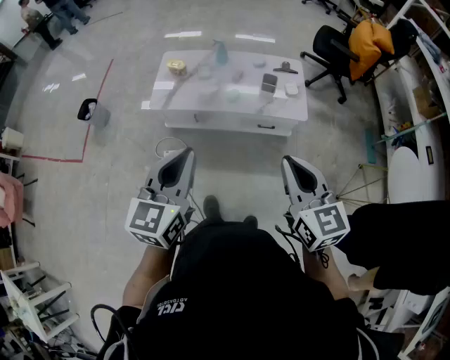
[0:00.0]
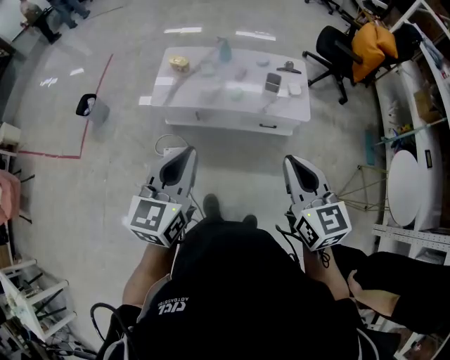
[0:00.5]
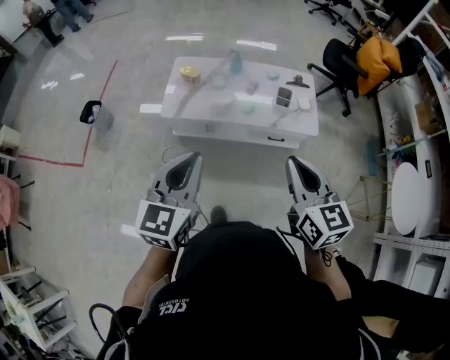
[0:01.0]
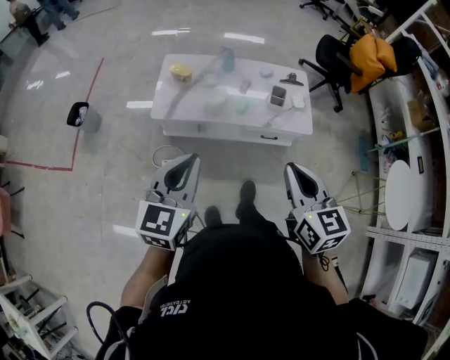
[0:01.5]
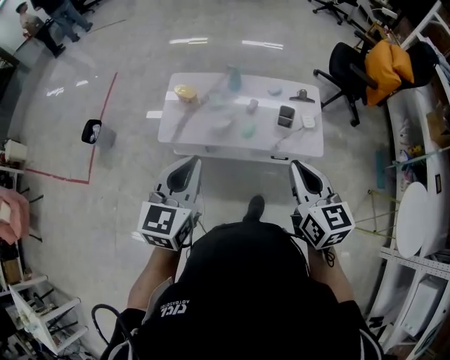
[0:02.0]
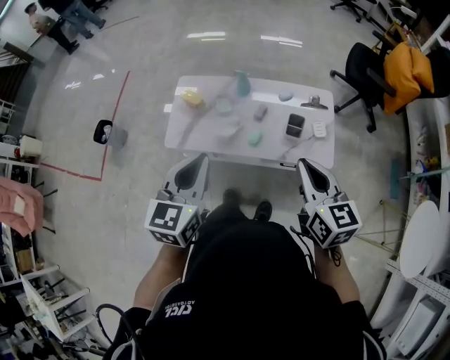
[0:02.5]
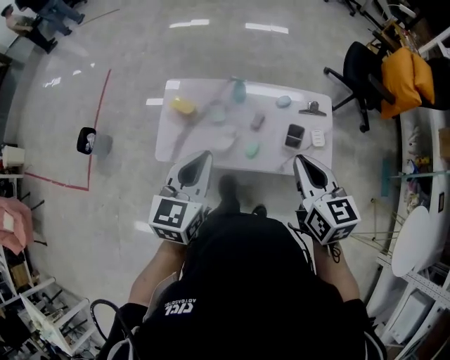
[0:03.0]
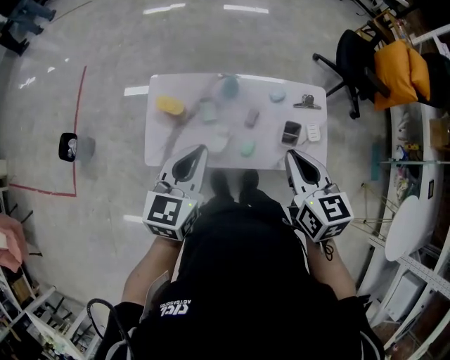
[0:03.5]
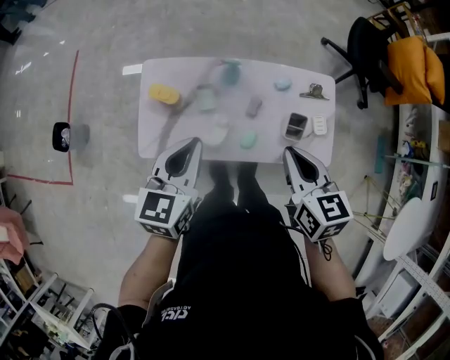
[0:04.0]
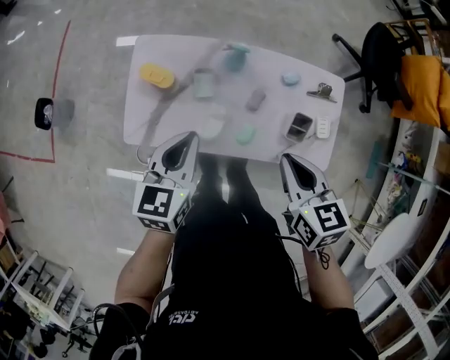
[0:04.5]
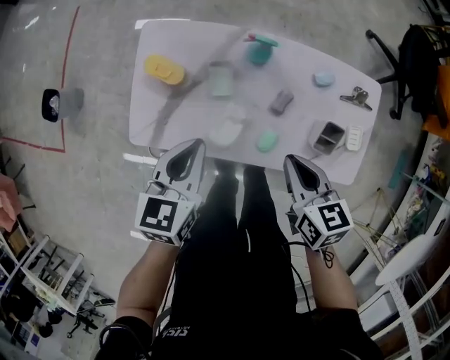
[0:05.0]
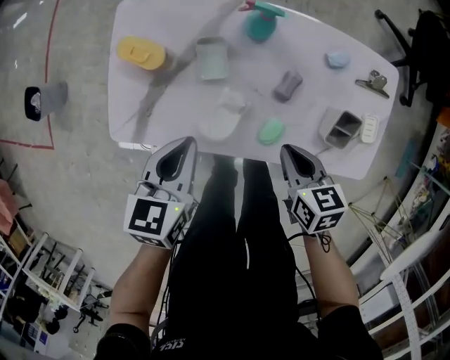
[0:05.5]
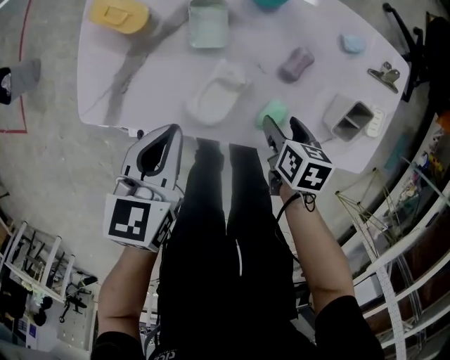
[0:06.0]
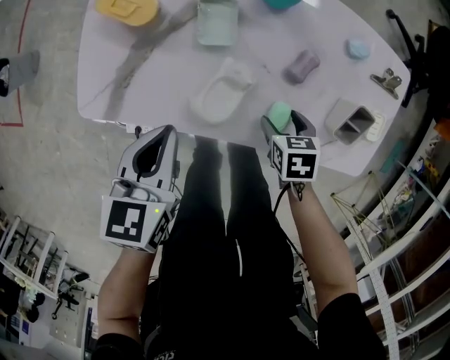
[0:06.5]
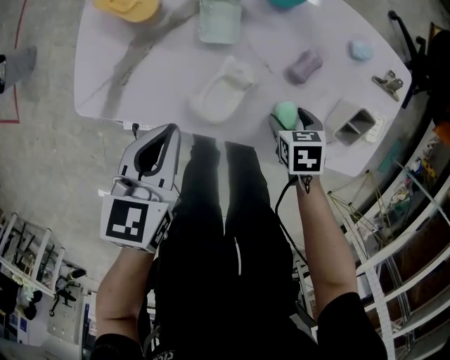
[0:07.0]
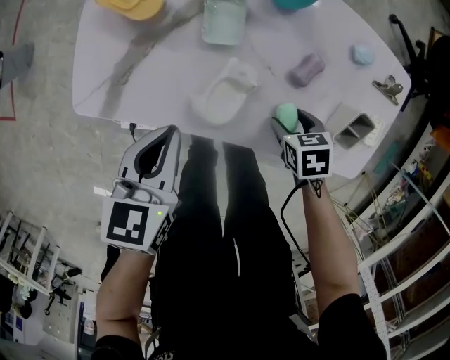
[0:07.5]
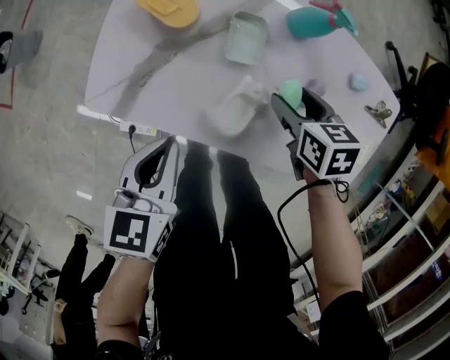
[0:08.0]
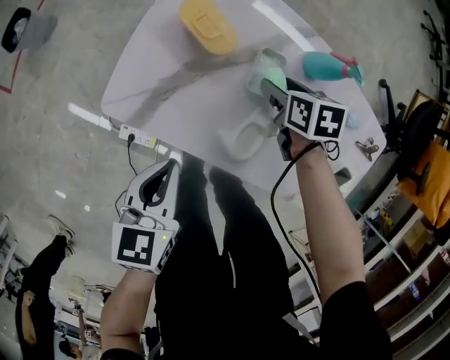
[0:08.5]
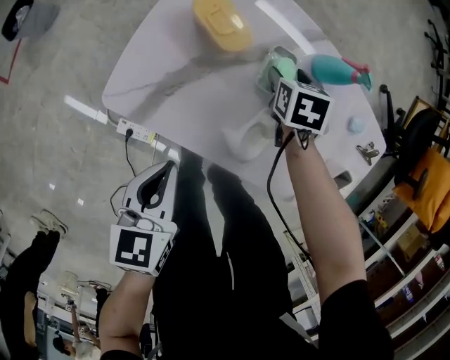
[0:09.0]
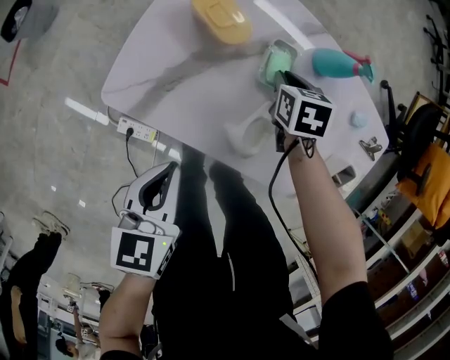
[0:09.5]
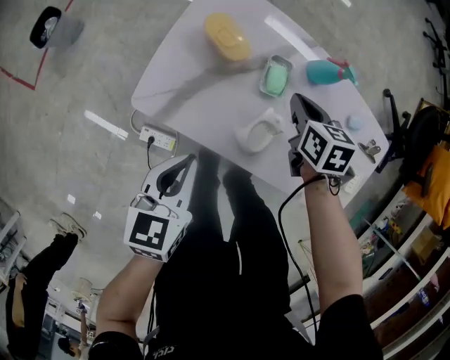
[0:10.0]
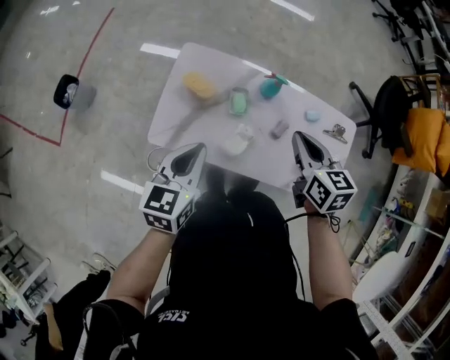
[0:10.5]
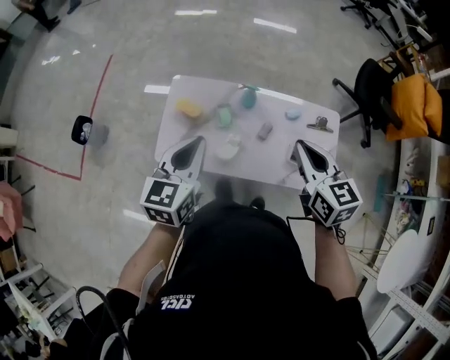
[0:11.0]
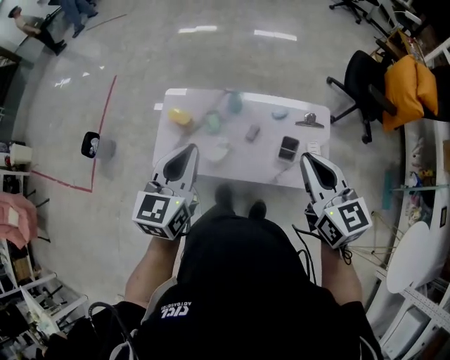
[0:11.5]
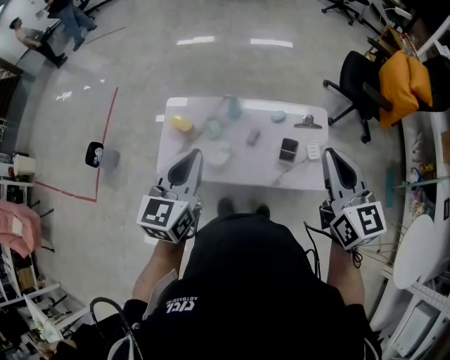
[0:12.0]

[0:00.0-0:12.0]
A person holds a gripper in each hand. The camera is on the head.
0:00.0 to 0:02.0: The two grippers go roughly 20 cm forward.
0:02.0 to 0:04.0: The right gripper shifts about 30 cm forward. The left gripper heads forward and downward, covering roughly 35 cm.
0:04.0 to 0:06.0: Both grippers travel together downward, roughly 40 cm. The left gripper changes its angle by some 20 degrees. Meanwhile the right gripper tips its fingers downward by about 30 degrees, and opens its fingers.
0:06.0 to 0:08.0: The right gripper ends up about 15 cm from where it was, and turns by about 30 degrees. The left gripper ends up some 5 cm from where it was.
0:08.0 to 0:10.0: The left gripper heads upward, covering about 5 cm. Meanwhile the right gripper goes some 10 cm to the left, forward and upward, and closes.
0:10.0 to 0:12.0: The right gripper goes some 60 cm upward, to the right and backward, and points its fingers some 40 degrees further upward, while the left gripper is displaced upward and to the right by about 40 cm, and turns by about 30 degrees.

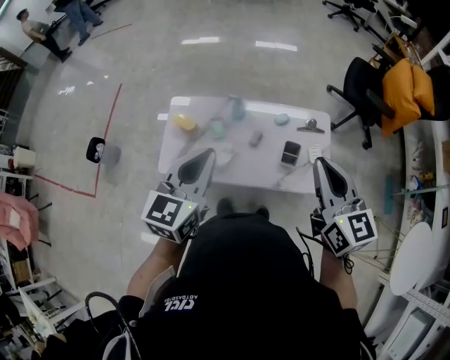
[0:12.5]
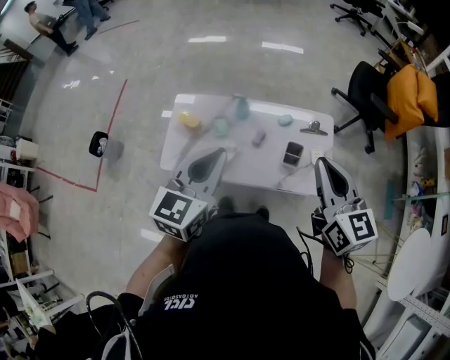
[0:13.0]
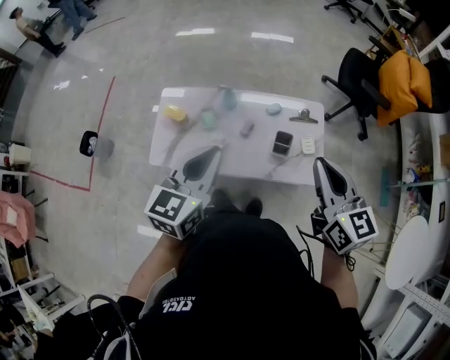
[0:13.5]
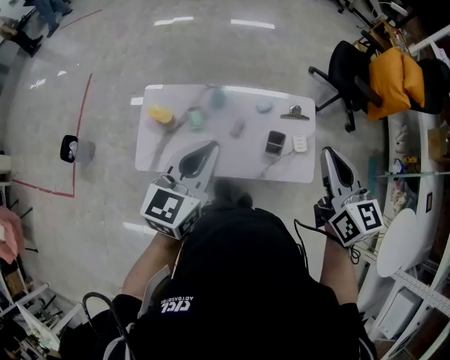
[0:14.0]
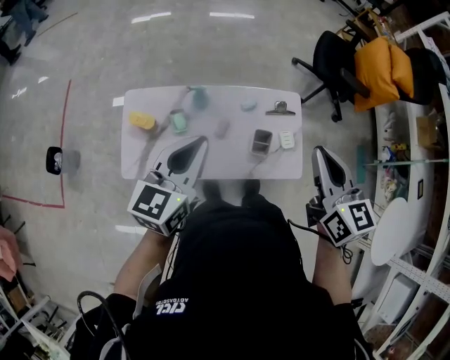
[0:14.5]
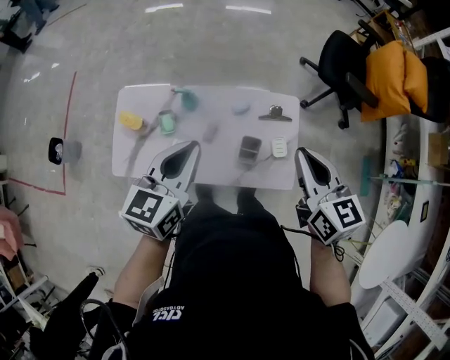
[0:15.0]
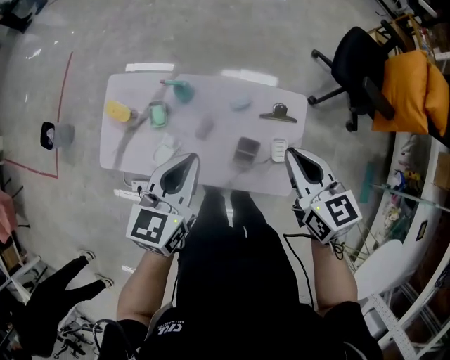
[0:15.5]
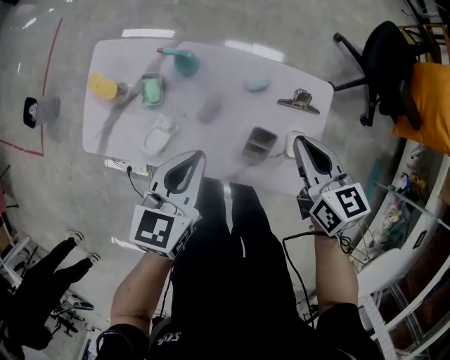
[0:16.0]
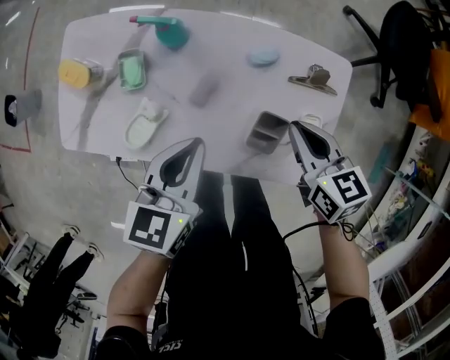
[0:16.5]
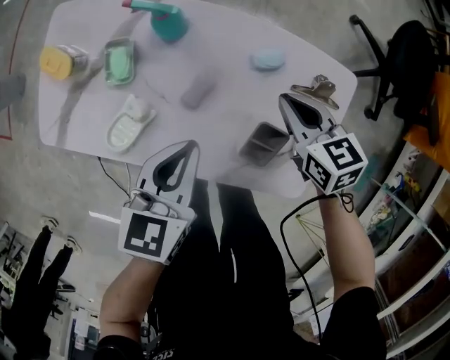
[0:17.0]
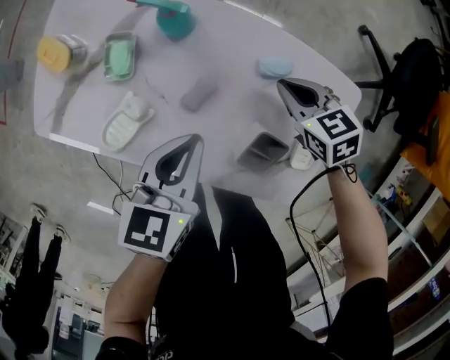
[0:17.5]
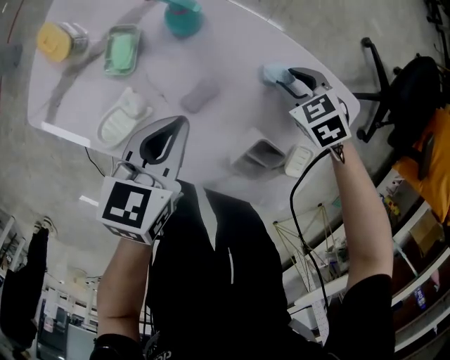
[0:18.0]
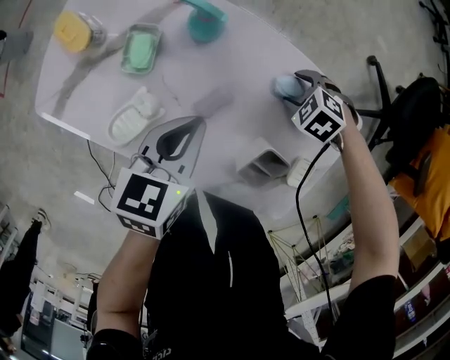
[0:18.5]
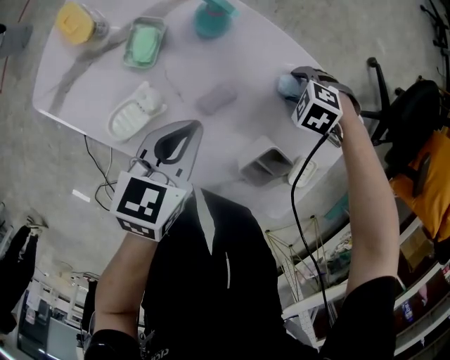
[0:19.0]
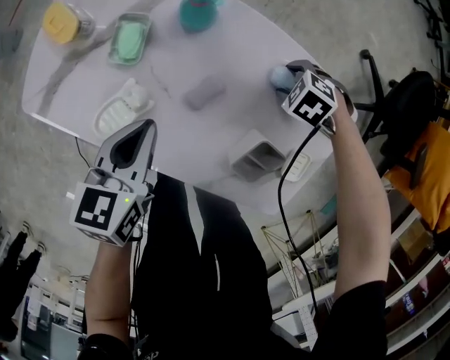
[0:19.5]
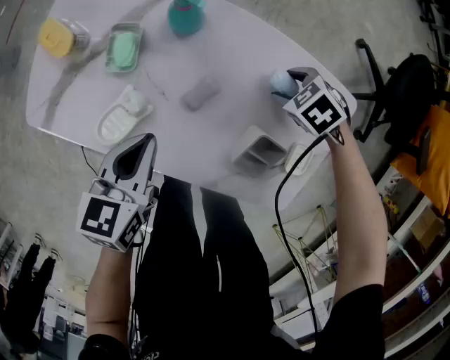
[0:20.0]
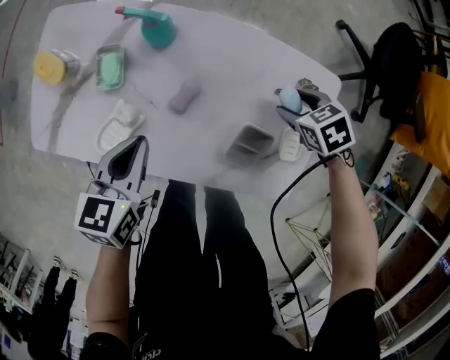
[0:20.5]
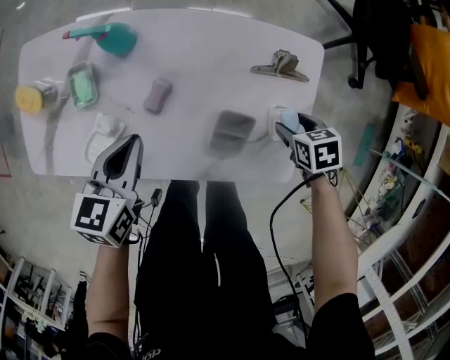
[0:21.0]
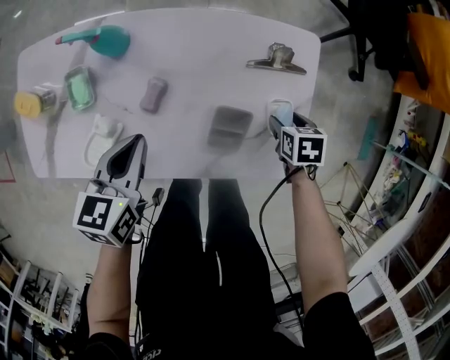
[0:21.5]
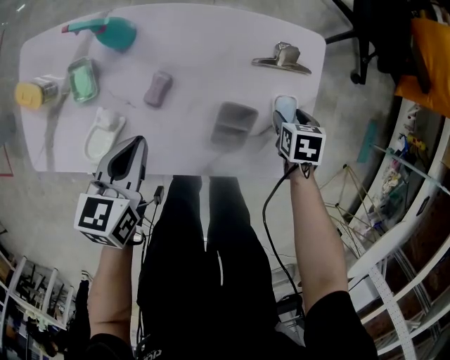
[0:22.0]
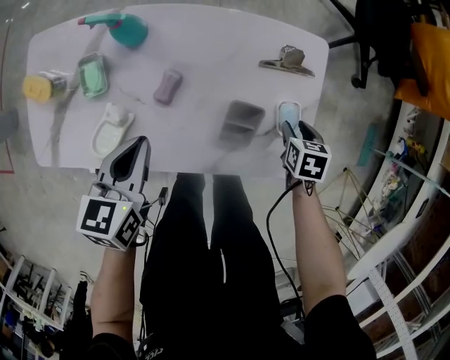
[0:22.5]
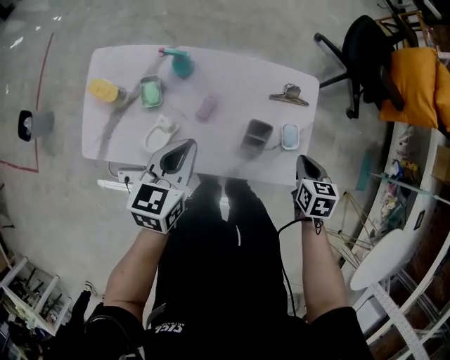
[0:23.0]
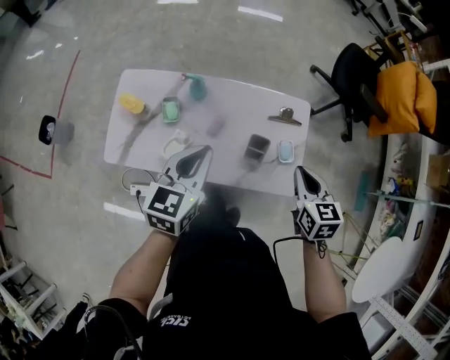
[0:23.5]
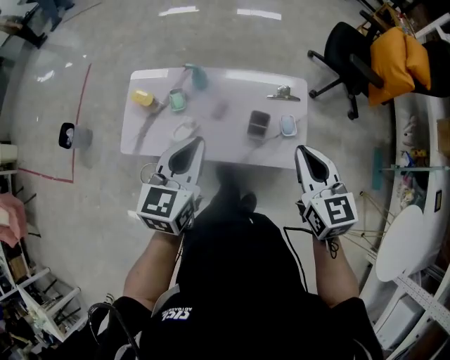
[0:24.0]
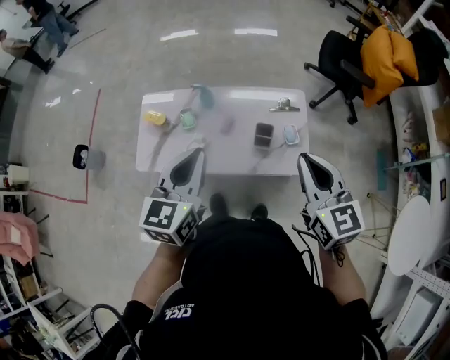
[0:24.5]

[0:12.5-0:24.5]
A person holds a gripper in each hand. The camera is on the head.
0:12.5 to 0:14.5: The grippers both shift forward by roughly 10 cm.
0:14.5 to 0:16.5: The two grippers go roughly 35 cm downward. The left gripper rotates some 30 degrees; the right gripper changes its angle by roughly 30 degrees.
0:16.5 to 0:18.5: The left gripper shifts roughly 10 cm downward, while the right gripper goes approximately 20 cm downward, rolls counterclockwise, seen from behind, by approximately 70 degrees, and opens up.
0:18.5 to 0:20.5: The right gripper moves roughly 15 cm, and rolls clockwise, seen from behind, by some 50 degrees. The left gripper moves approximately 5 cm.
0:20.5 to 0:22.5: The right gripper ends up approximately 15 cm from where it was, and twists some 40 degrees clockwise, seen from behind.
0:22.5 to 0:24.5: Both grippers move upward, about 50 cm. The left gripper turns by some 30 degrees. Meanwhile the right gripper tilts its fingers about 50 degrees upward, and closes up.

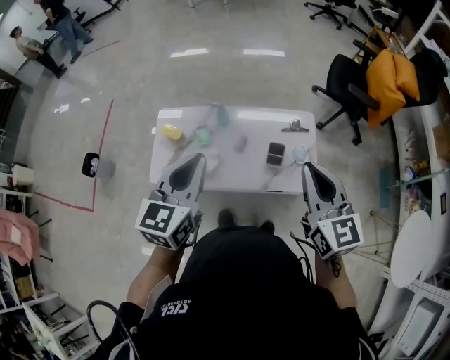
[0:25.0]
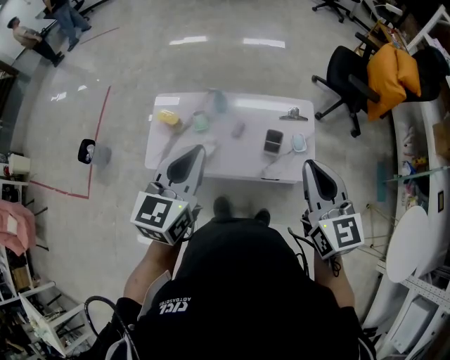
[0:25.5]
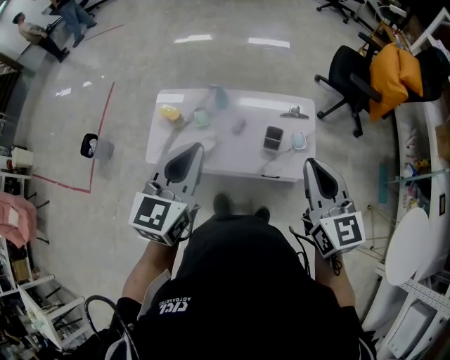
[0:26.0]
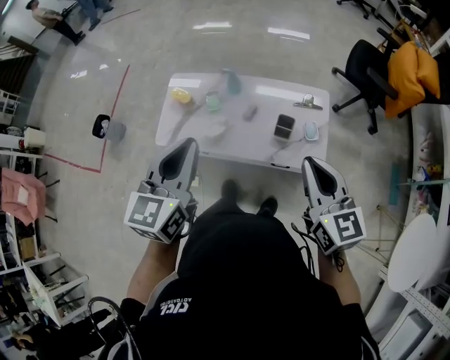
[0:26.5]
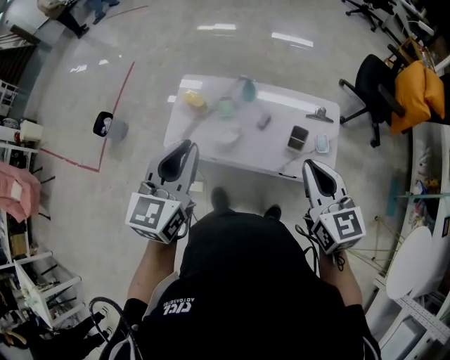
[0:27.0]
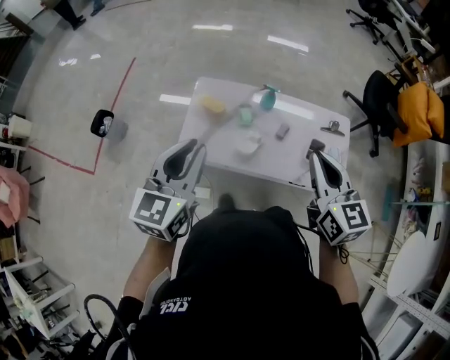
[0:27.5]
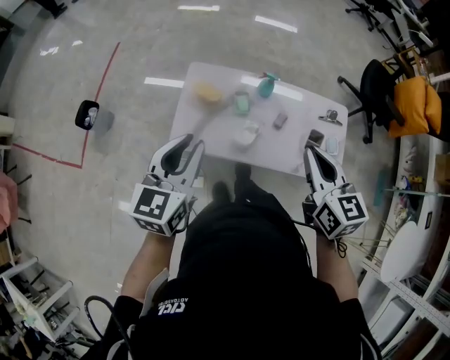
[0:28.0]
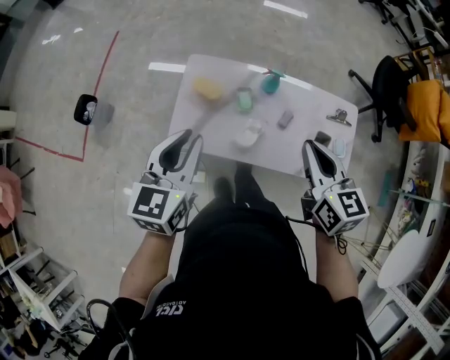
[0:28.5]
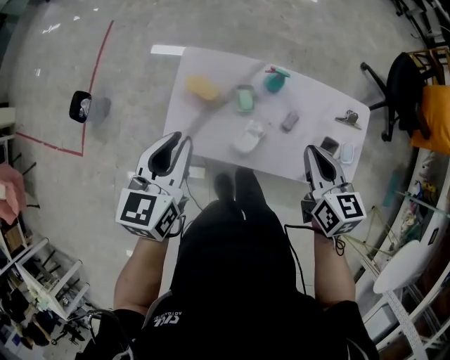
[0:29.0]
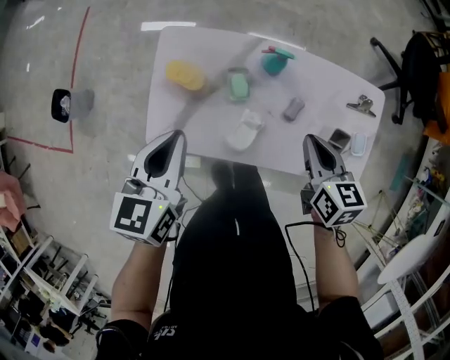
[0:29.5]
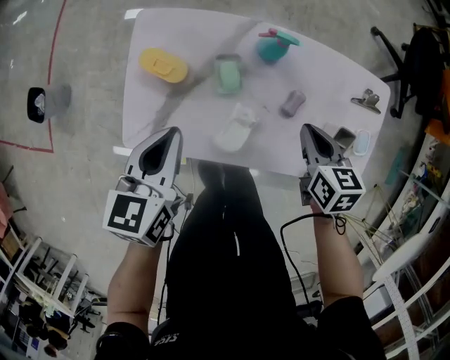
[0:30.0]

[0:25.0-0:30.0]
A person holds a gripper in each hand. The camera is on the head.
0:25.0 to 0:27.5: Both grippers move to the left, roughly 20 cm.
0:27.5 to 0:30.0: The grippers both shift downward and forward by roughly 40 cm. The right gripper tilts its fingers some 30 degrees downward, while the left gripper changes its angle by about 30 degrees.
